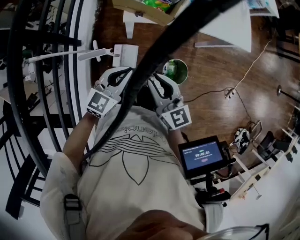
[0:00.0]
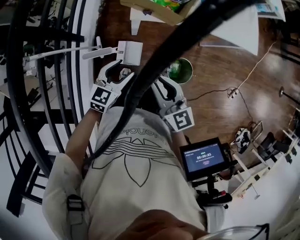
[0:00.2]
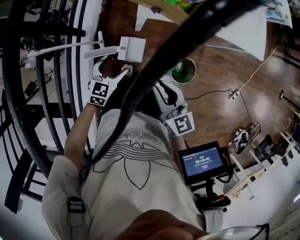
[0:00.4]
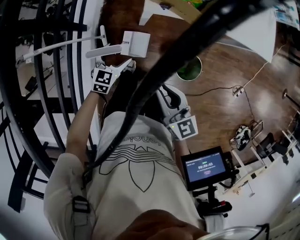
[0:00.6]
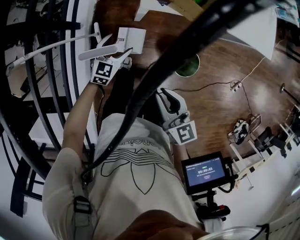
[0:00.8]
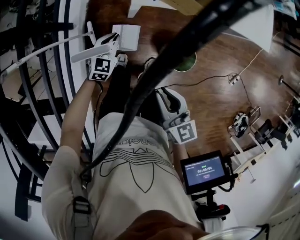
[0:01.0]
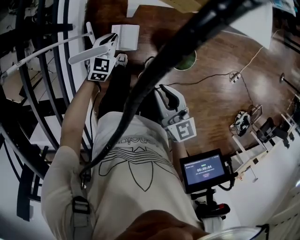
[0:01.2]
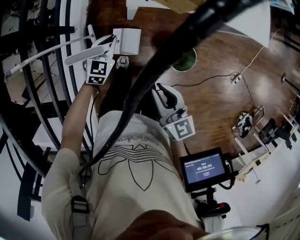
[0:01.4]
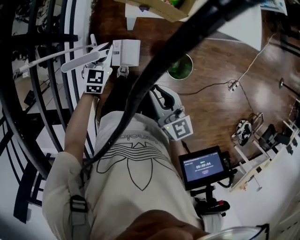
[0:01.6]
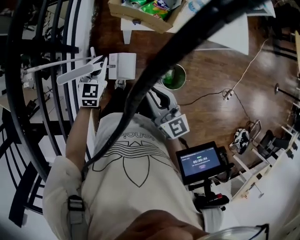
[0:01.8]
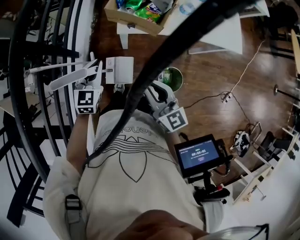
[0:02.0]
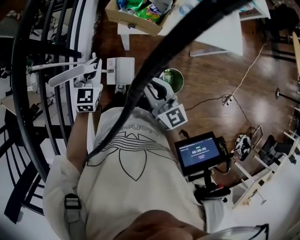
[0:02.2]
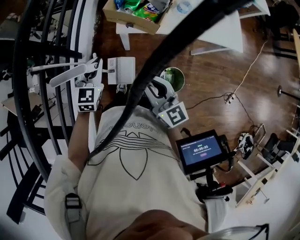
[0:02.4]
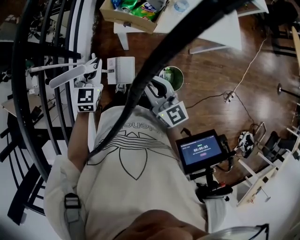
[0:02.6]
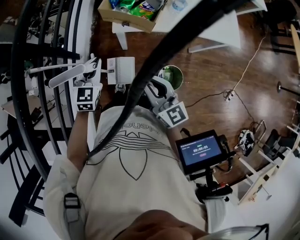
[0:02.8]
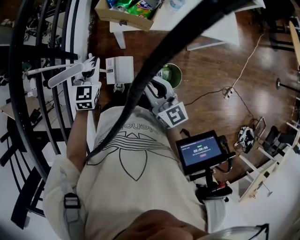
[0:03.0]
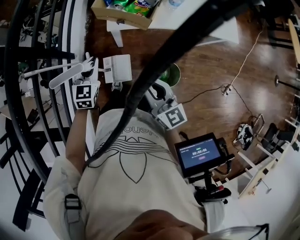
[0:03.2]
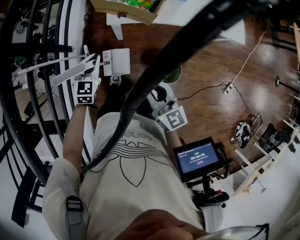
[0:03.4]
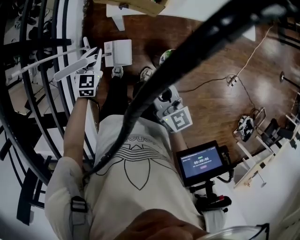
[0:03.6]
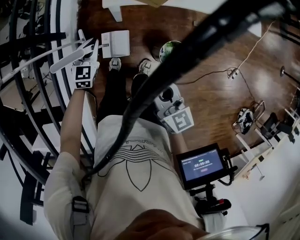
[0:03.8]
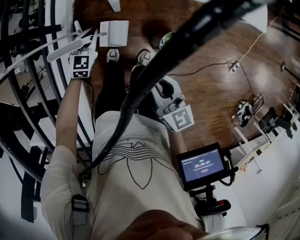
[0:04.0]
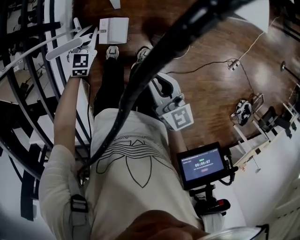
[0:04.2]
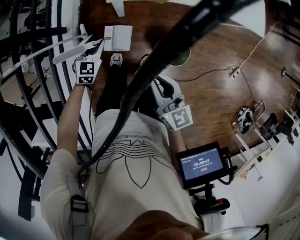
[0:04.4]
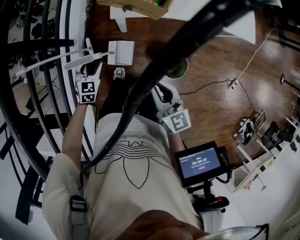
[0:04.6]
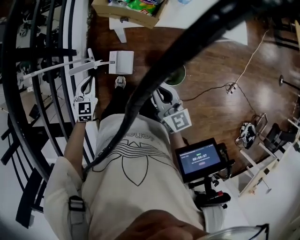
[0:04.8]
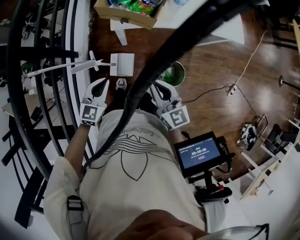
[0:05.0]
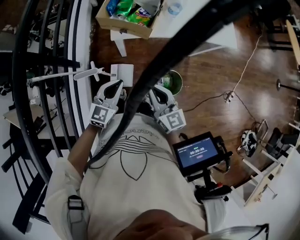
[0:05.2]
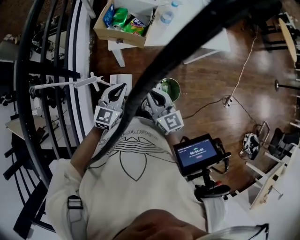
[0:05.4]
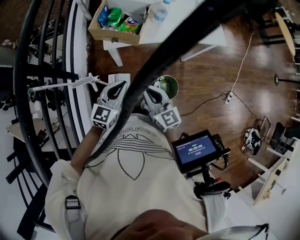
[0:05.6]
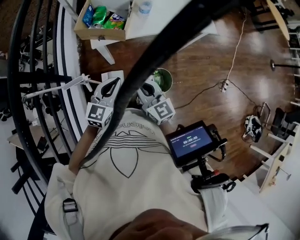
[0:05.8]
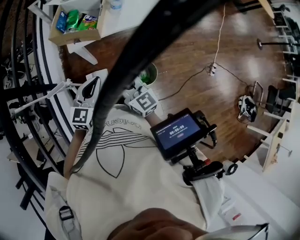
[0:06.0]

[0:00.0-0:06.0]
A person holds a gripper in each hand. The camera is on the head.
0:00.0 to 0:01.6: The left gripper moves downward, forward and to the left, approximately 20 cm, swivels roughly 20 degrees, and opens, then closes again.
0:01.6 to 0:03.0: The right gripper changes place by approximately 5 cm. The left gripper goes some 10 cm upward.
0:03.0 to 0:04.4: The left gripper travels downward by roughly 20 cm, and opens; the right gripper heads downward, covering some 10 cm.
0:04.4 to 0:06.0: The left gripper travels upward and to the right by approximately 30 cm, changes its angle by some 30 degrees, and closes up; the right gripper is displaced upward by roughly 10 cm.

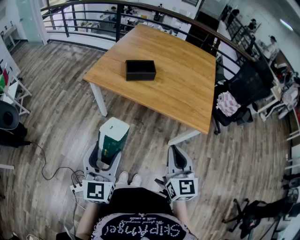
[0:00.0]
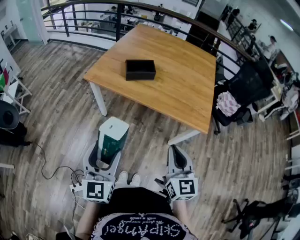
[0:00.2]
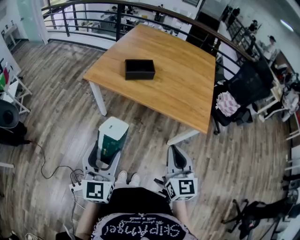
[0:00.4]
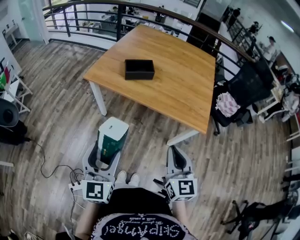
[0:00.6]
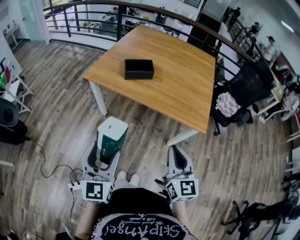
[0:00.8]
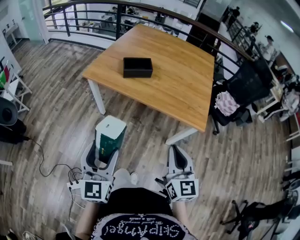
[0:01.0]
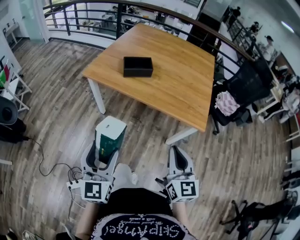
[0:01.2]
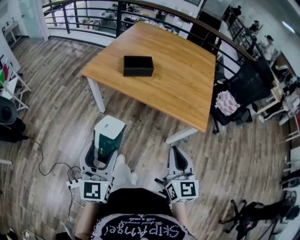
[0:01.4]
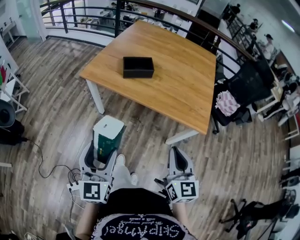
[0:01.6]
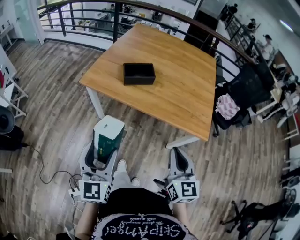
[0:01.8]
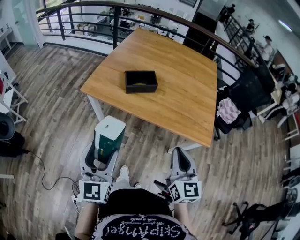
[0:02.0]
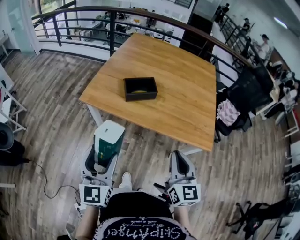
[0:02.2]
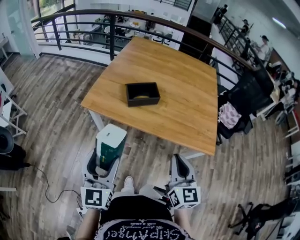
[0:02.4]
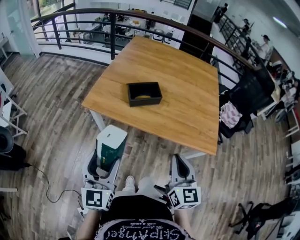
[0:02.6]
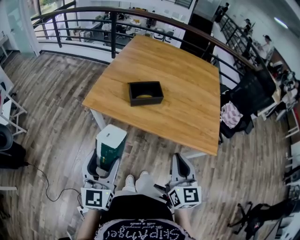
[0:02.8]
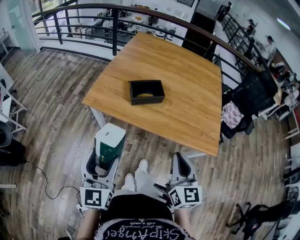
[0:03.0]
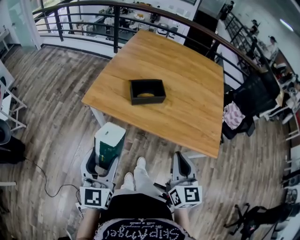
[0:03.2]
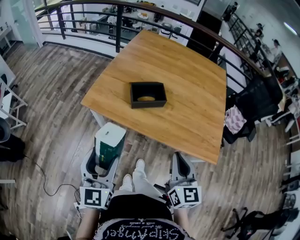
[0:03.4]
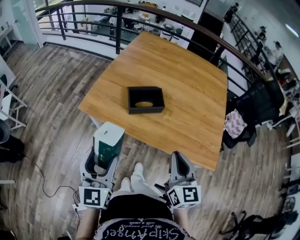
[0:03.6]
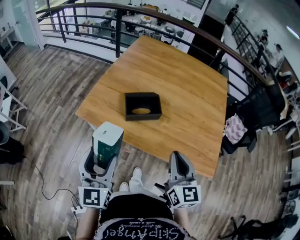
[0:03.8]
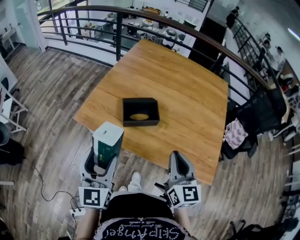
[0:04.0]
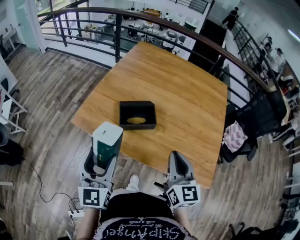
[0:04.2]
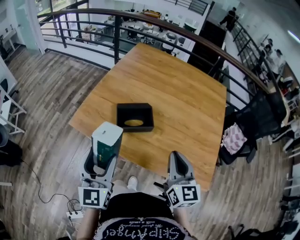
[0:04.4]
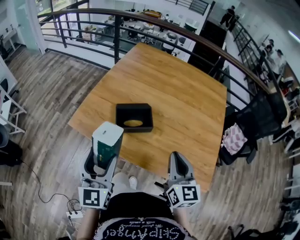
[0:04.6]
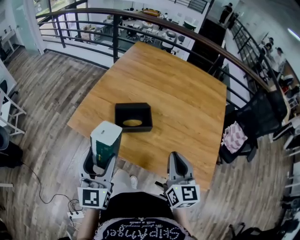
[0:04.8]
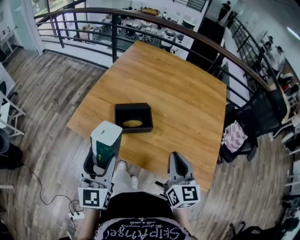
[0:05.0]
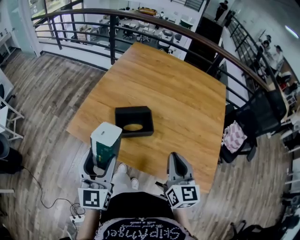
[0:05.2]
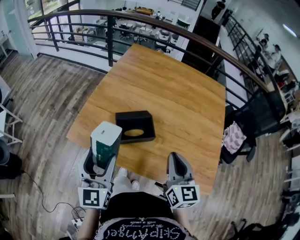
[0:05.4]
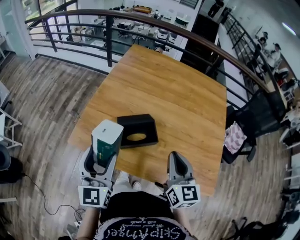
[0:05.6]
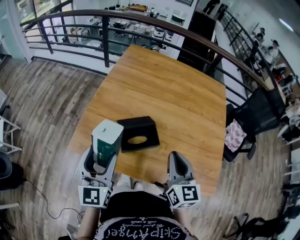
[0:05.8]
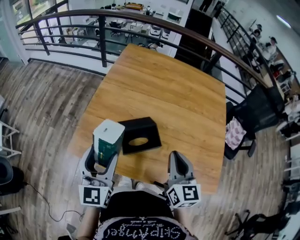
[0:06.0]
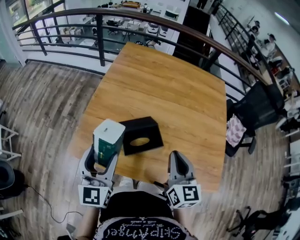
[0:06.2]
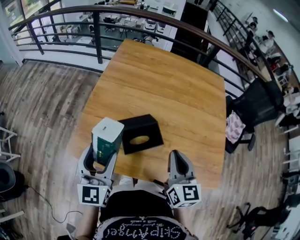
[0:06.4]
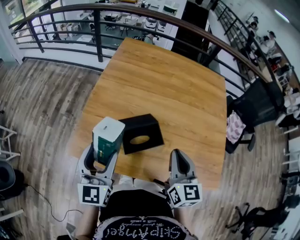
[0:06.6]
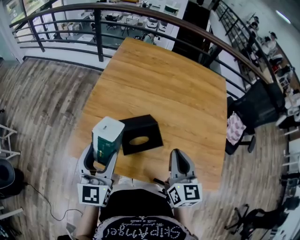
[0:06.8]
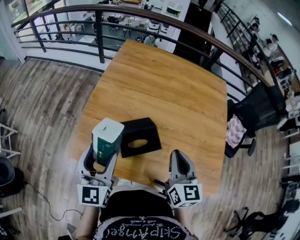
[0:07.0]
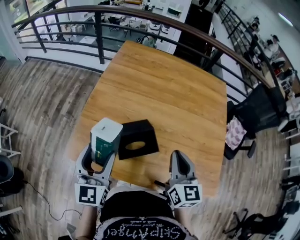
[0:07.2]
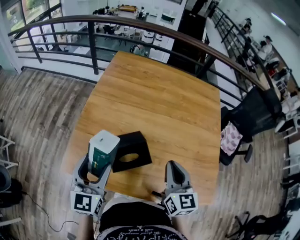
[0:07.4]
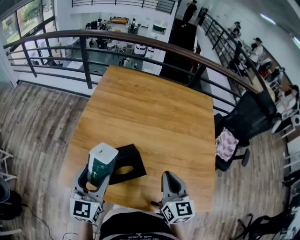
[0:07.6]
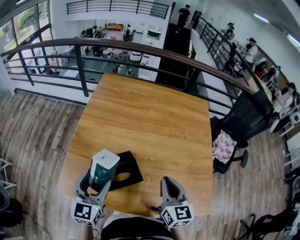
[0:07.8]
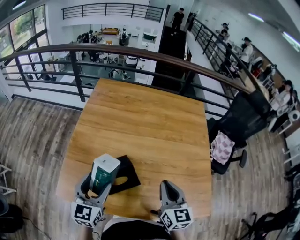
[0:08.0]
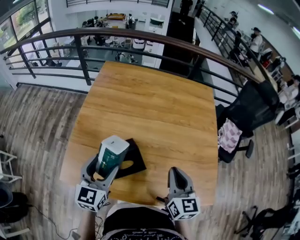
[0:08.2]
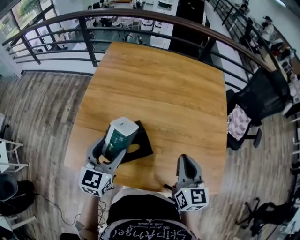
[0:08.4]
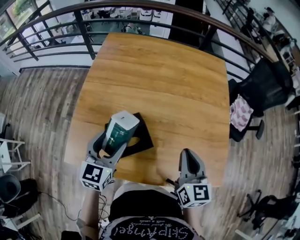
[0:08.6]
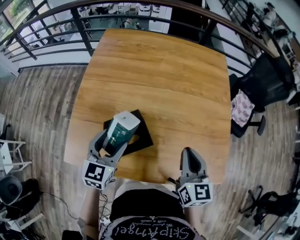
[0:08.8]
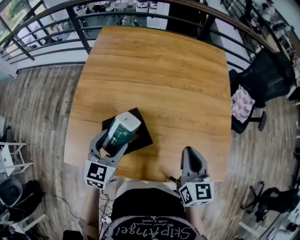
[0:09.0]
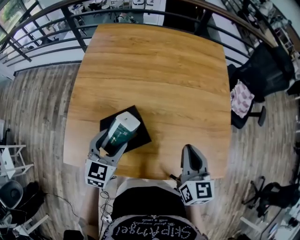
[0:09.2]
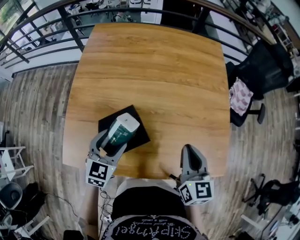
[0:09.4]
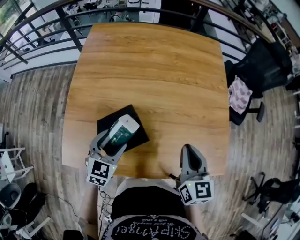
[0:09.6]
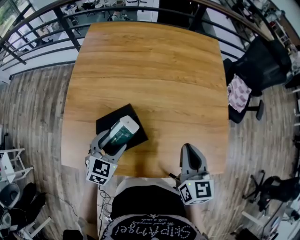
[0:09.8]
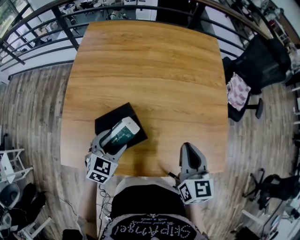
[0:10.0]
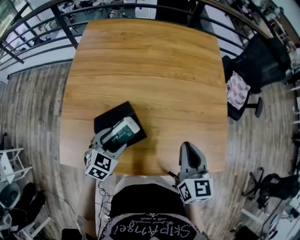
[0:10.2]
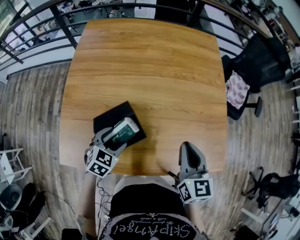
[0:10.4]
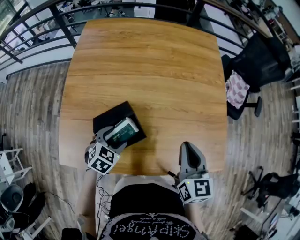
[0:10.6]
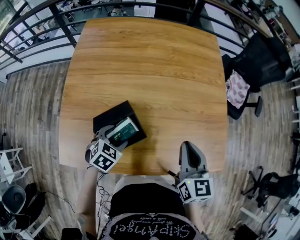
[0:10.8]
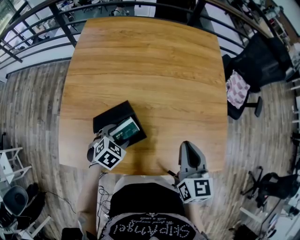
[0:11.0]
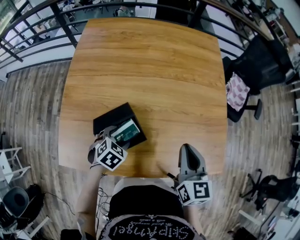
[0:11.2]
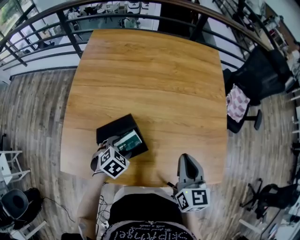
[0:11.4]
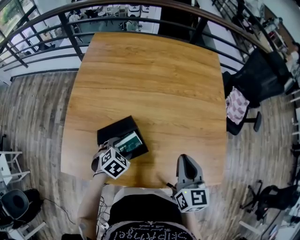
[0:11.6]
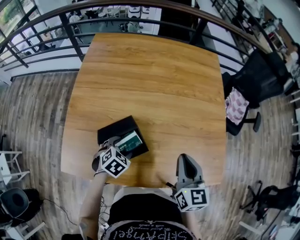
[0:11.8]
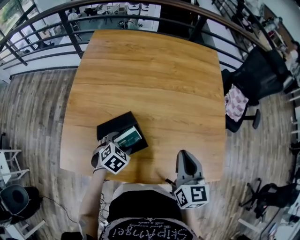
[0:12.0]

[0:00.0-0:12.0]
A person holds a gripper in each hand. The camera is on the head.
0:00.0 to 0:01.6: The grippers make only small movements.
0:01.6 to 0:03.0: Both grippers move forward and to the left, about 15 cm.
0:03.0 to 0:04.4: Both grippers travel together forward and to the right, some 20 cm.
0:04.4 to 0:06.0: The left gripper is displaced forward by about 15 cm, while the right gripper shifts some 15 cm forward and to the left.
0:06.0 to 0:07.6: The left gripper travels forward by about 5 cm; the right gripper moves roughly 5 cm.
0:07.6 to 0:09.0: The left gripper shifts roughly 15 cm downward, to the right and forward, and swivels about 20 degrees, while the right gripper goes roughly 5 cm to the right.
0:09.0 to 0:10.4: The left gripper goes approximately 10 cm downward, and swivels approximately 30 degrees.
0:10.4 to 0:12.0: The grippers stay close to where they were, moving slightly.

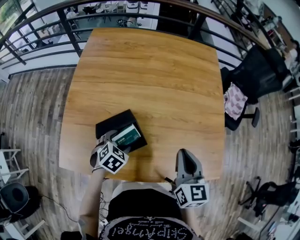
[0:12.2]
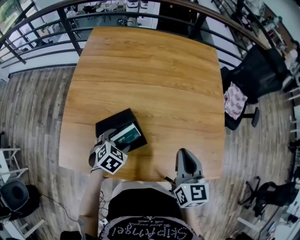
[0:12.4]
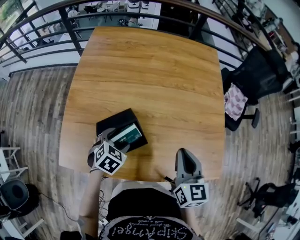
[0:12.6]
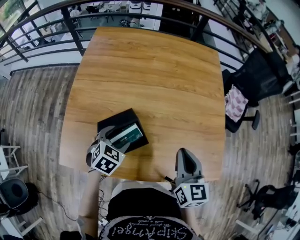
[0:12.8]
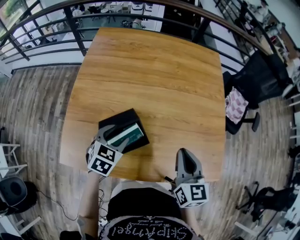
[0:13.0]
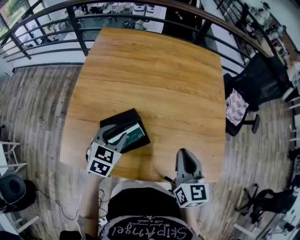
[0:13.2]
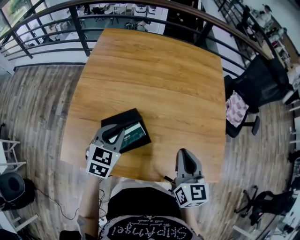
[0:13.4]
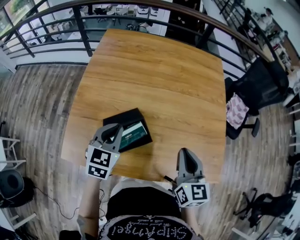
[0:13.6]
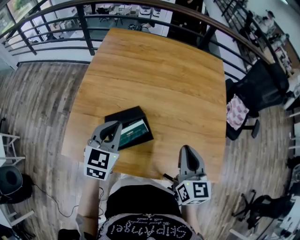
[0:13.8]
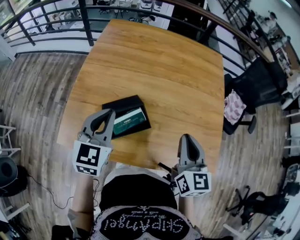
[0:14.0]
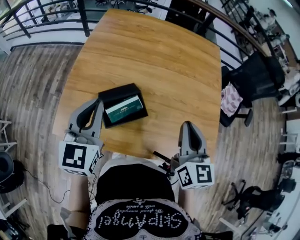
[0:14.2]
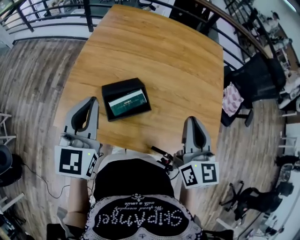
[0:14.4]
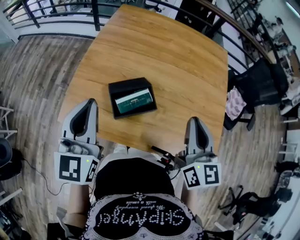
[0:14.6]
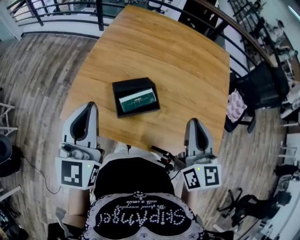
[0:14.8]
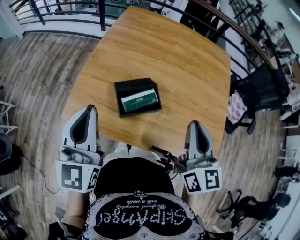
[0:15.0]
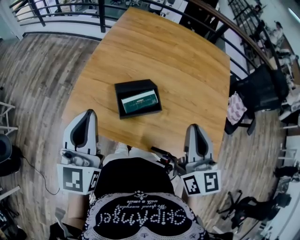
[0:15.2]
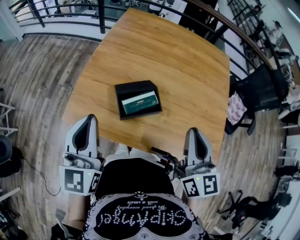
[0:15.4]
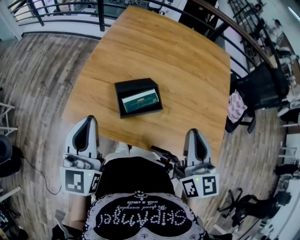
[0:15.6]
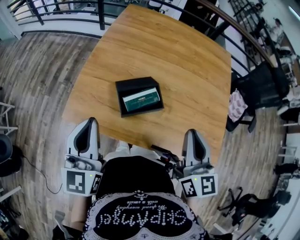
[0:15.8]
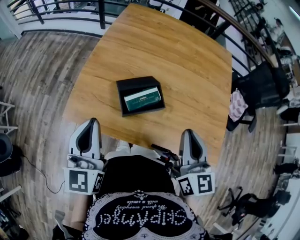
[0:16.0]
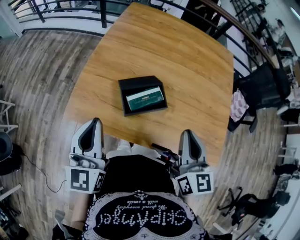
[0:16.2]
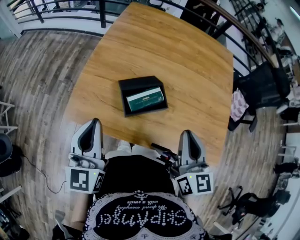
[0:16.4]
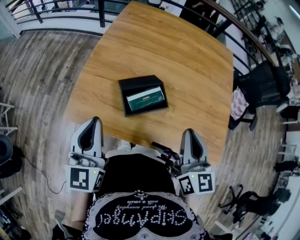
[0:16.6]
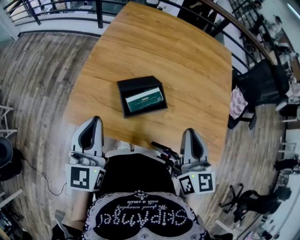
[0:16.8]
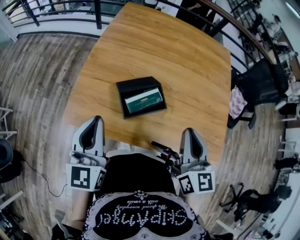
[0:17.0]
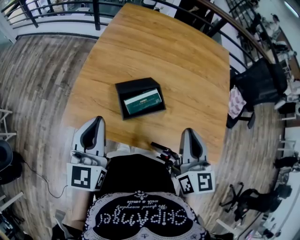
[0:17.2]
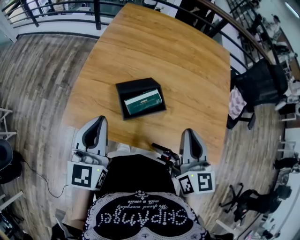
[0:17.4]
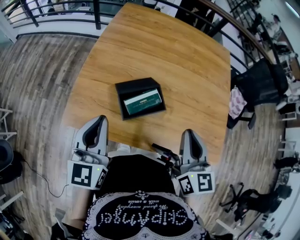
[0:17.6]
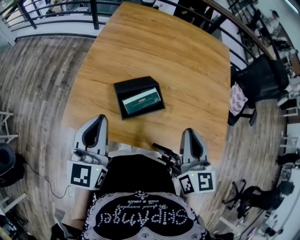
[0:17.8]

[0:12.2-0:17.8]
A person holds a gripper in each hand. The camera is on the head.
0:12.2 to 0:13.6: The left gripper travels upward by approximately 15 cm, angles its fingers upward, by about 30 degrees, and closes.
0:13.6 to 0:15.0: The right gripper shifts approximately 10 cm upward and to the left; the left gripper travels upward, backward and to the left by some 25 cm, and points its fingers some 30 degrees further upward.
0:15.0 to 0:16.4: Both grippers move downward, roughly 5 cm.
0:16.4 to 0:17.8: There are only small adjustments of the grippers.
